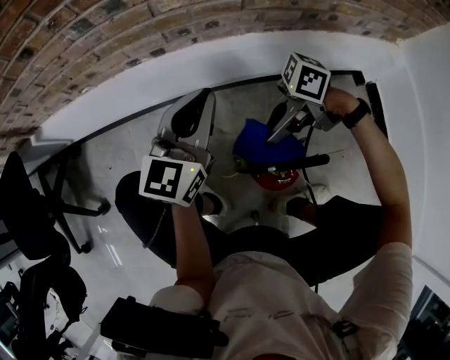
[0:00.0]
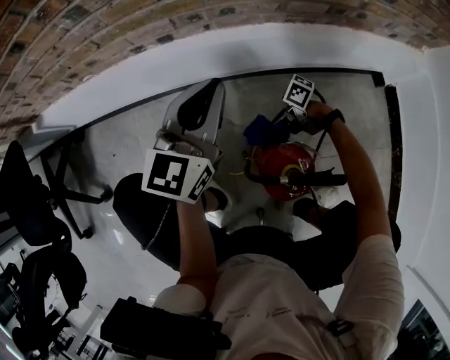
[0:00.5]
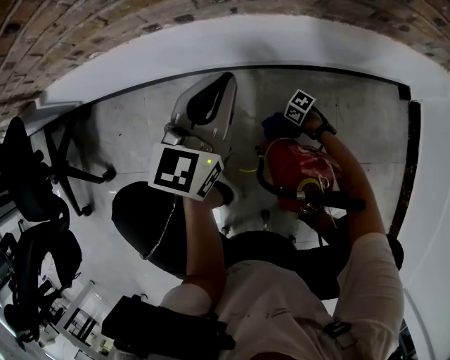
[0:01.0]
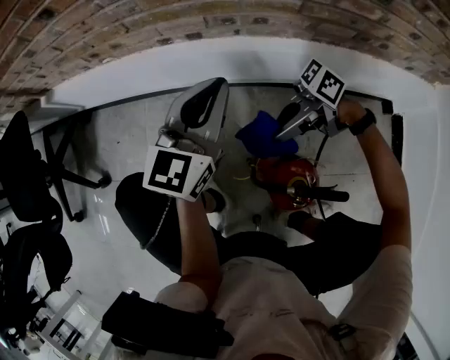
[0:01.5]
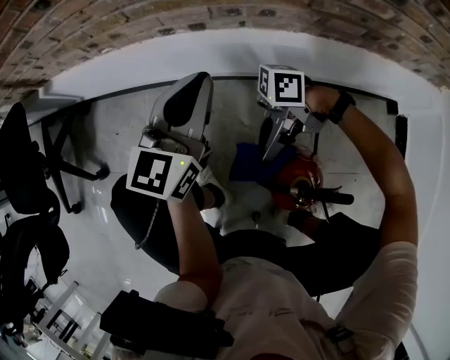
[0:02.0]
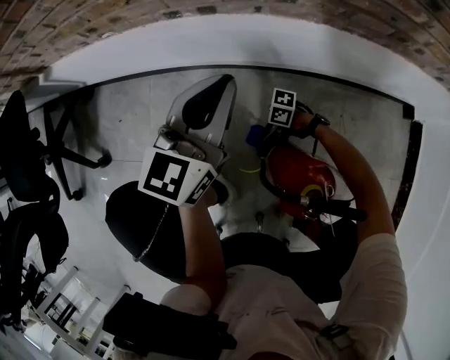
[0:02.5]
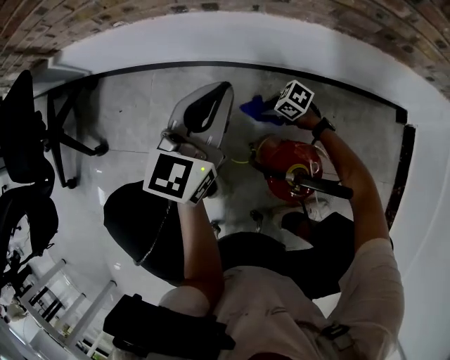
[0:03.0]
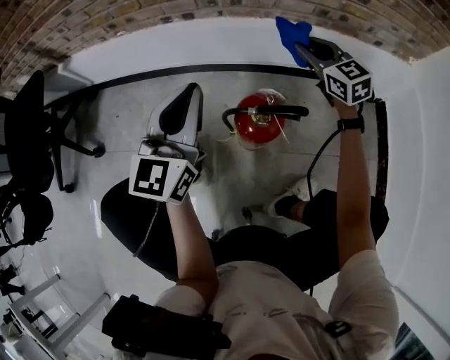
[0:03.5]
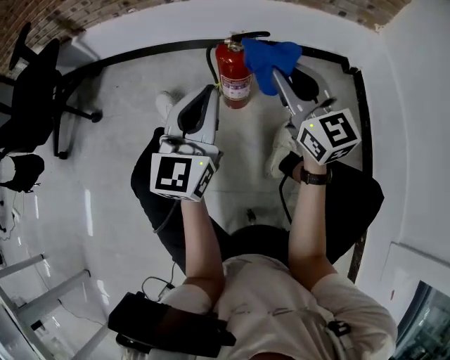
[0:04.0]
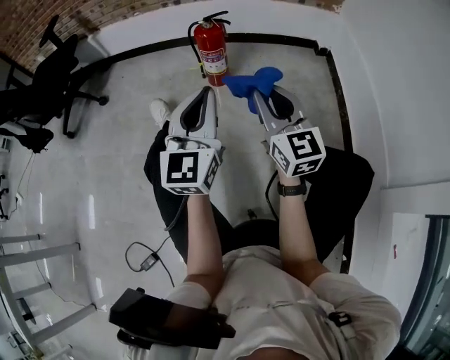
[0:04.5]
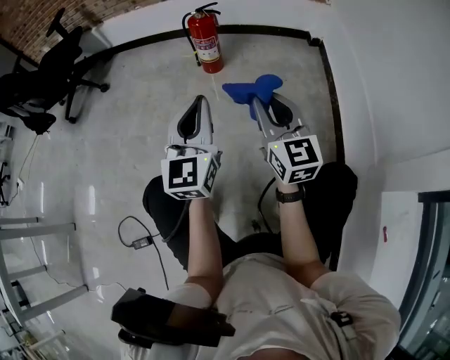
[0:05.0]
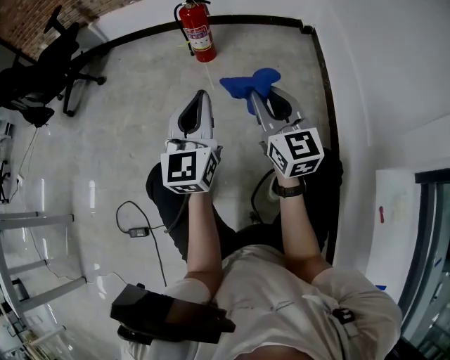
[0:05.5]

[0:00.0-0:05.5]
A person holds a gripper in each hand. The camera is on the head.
0:00.0 to 0:02.0: The left gripper moves some 10 cm, while the right gripper travels downward and back again, some 40 cm each way, and changes its angle by some 30 degrees.
0:02.0 to 0:03.5: The right gripper goes downward and returns, about 30 cm each way, and turns by some 120 degrees, while the left gripper moves roughly 20 cm.
0:03.5 to 0:05.5: The pair of grippers is taken backward, roughly 70 cm. The right gripper turns by about 20 degrees.

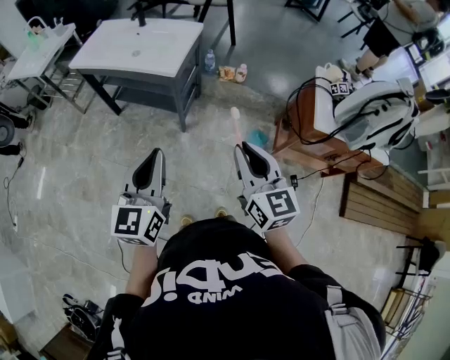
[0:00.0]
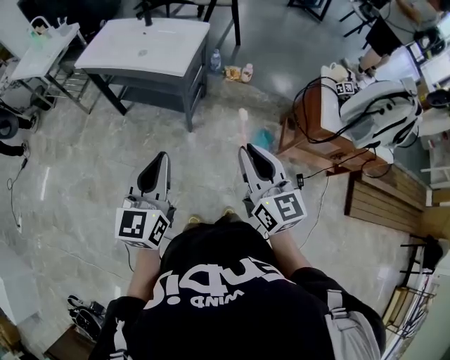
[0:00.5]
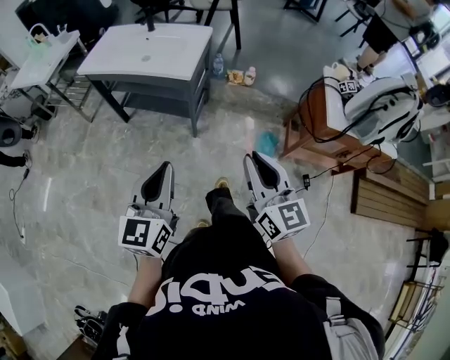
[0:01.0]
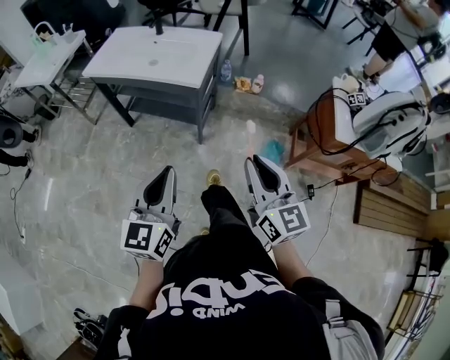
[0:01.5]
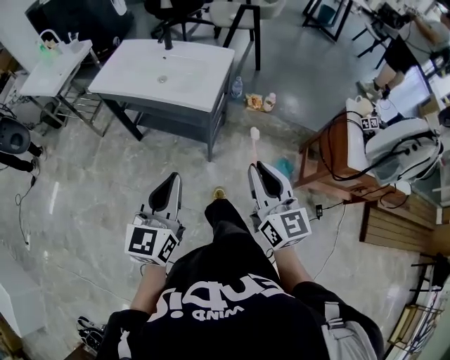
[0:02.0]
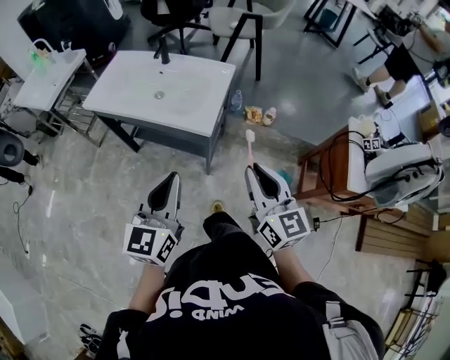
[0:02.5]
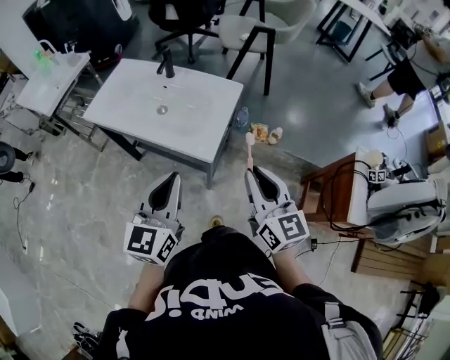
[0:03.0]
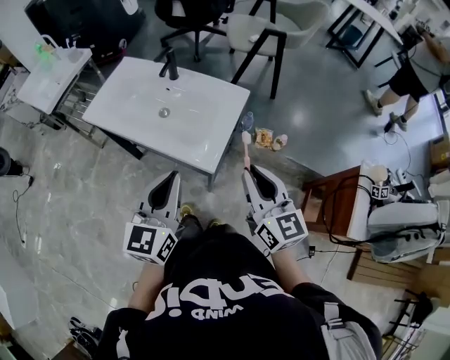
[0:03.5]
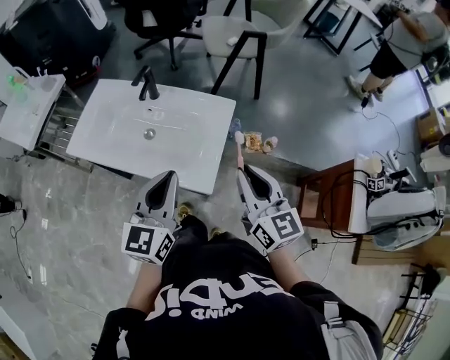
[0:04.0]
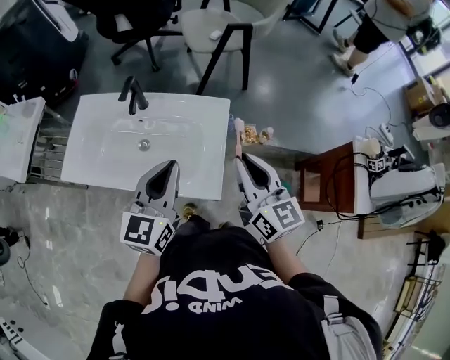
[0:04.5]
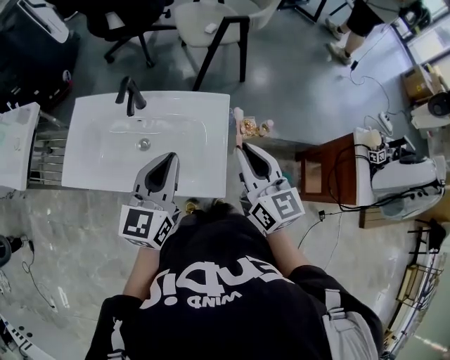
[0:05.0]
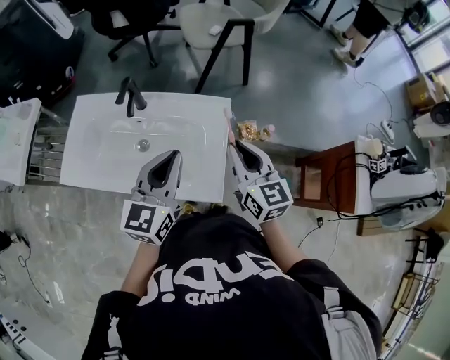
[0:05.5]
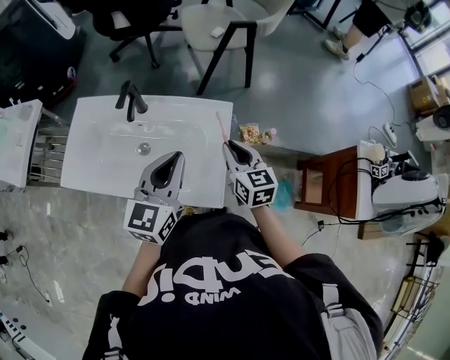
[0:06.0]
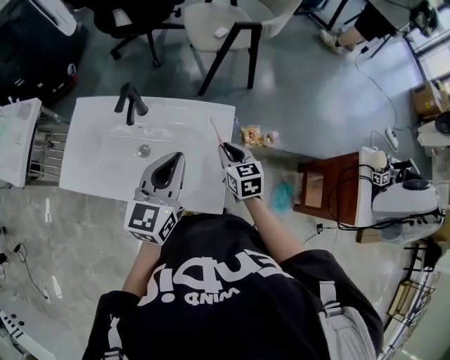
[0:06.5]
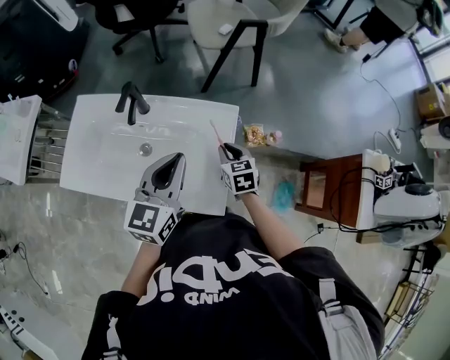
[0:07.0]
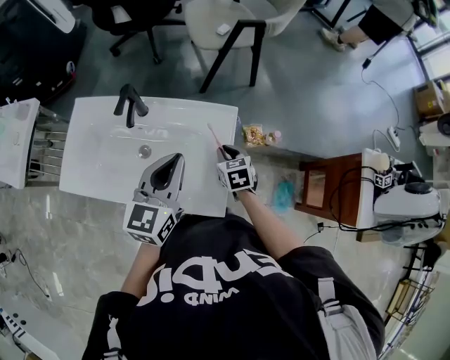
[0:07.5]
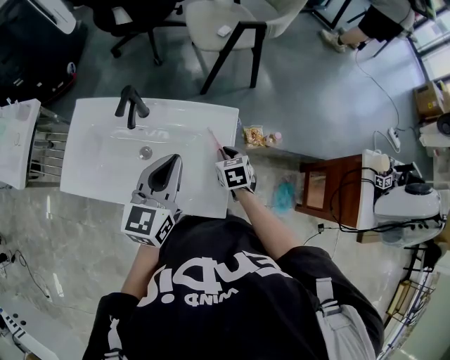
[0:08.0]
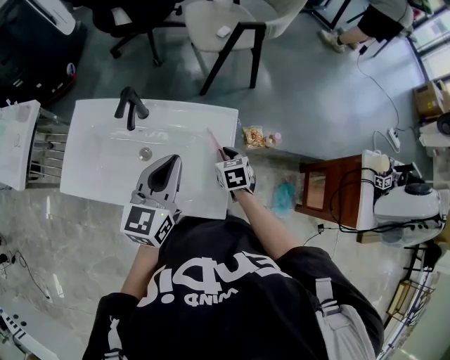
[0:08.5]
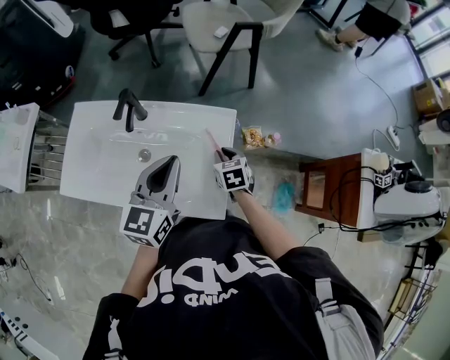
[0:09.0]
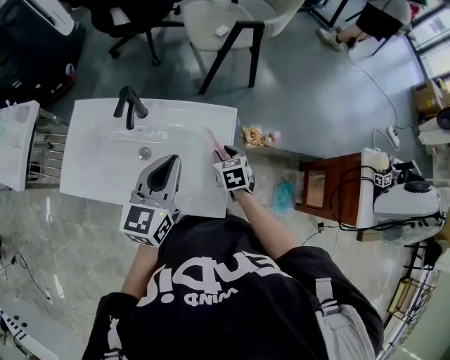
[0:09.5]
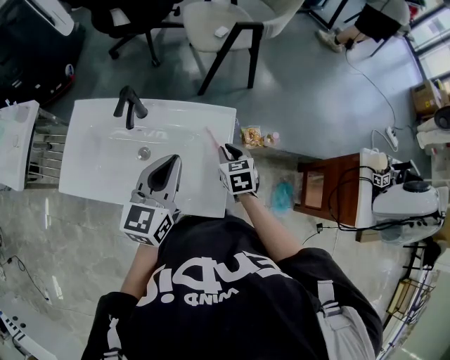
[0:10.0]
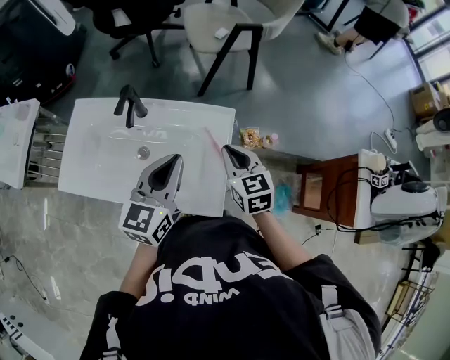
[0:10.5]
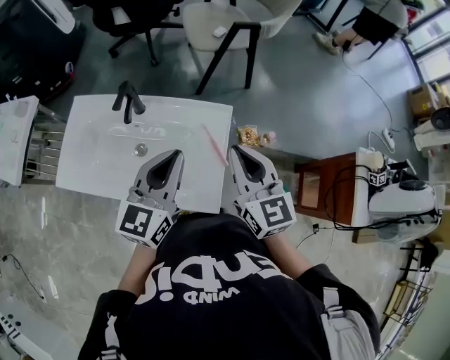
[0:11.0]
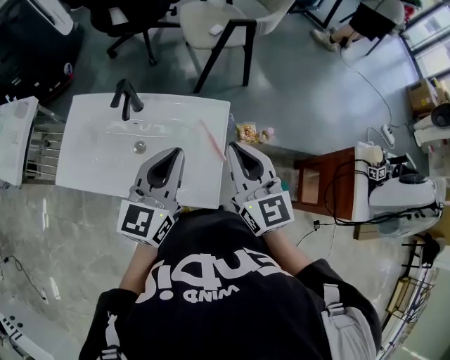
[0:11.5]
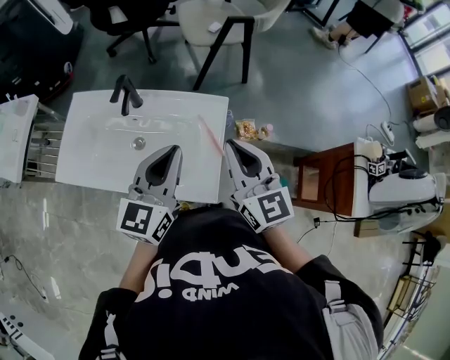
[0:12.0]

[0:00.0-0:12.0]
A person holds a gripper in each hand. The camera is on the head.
0:00.0 to 0:02.0: Both grippers move forward and to the left, about 15 cm.
0:02.0 to 0:04.0: The two grippers go about 35 cm forward.
0:04.0 to 0:06.0: The left gripper moves forward, approximately 15 cm. The right gripper goes roughly 20 cm forward and downward.
0:06.0 to 0:08.0: The right gripper goes approximately 15 cm downward, and swivels about 30 degrees.
0:08.0 to 0:10.0: The grippers move only a little.
0:10.0 to 0:12.0: The left gripper ends up about 5 cm from where it was; the right gripper travels upward and backward by some 25 cm, and points its fingers approximately 40 degrees further upward.

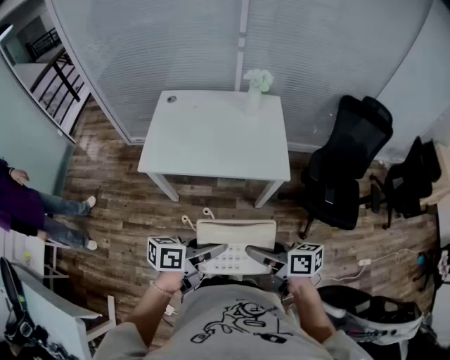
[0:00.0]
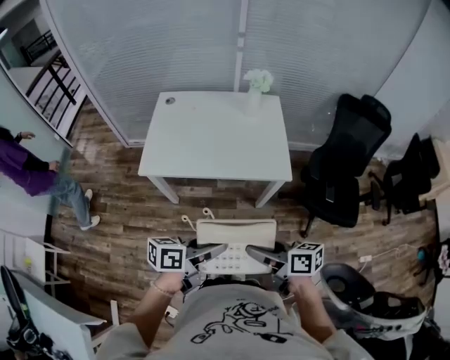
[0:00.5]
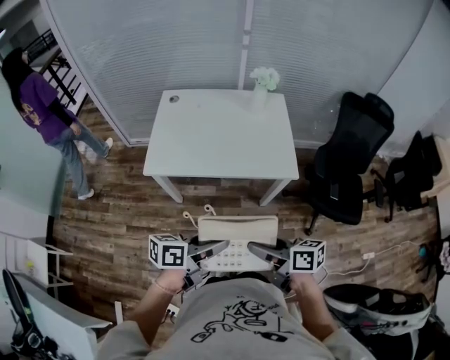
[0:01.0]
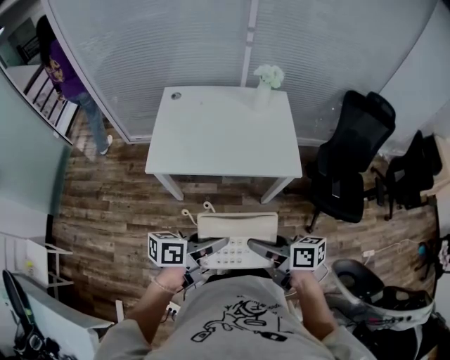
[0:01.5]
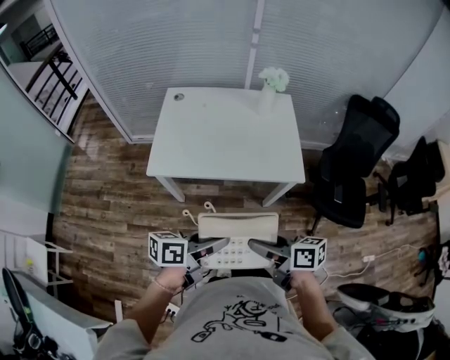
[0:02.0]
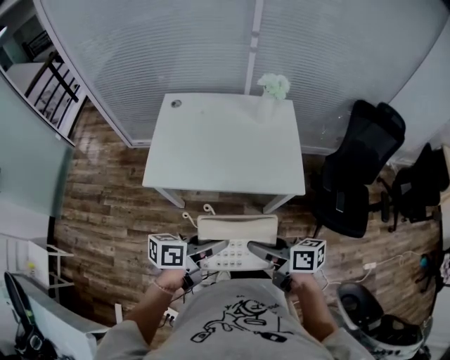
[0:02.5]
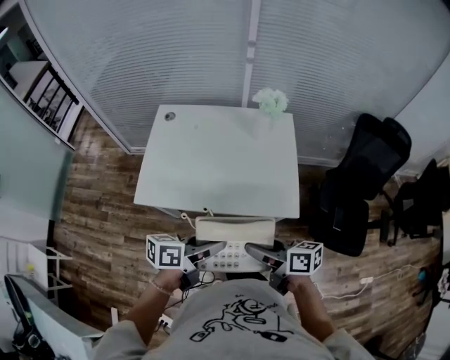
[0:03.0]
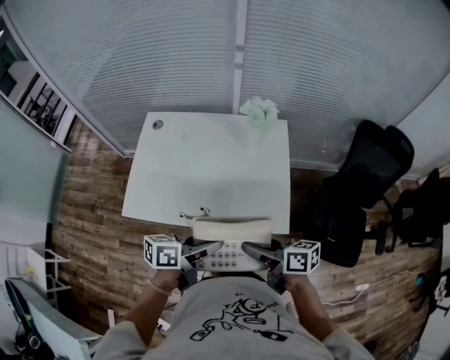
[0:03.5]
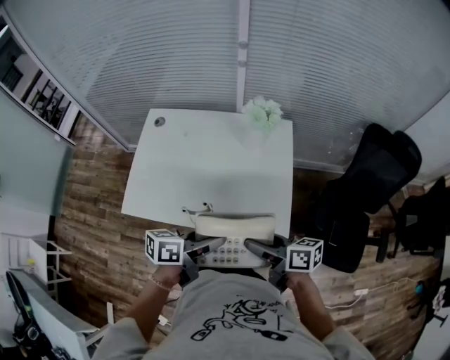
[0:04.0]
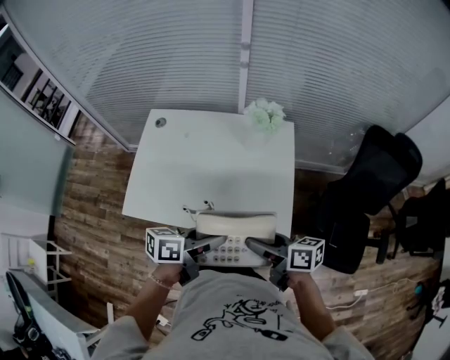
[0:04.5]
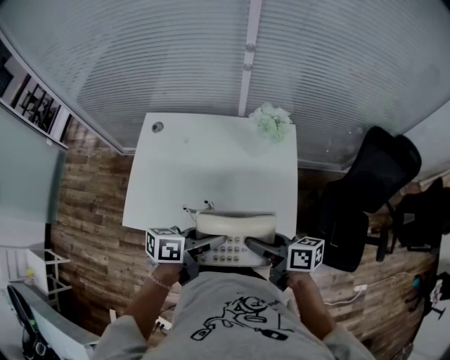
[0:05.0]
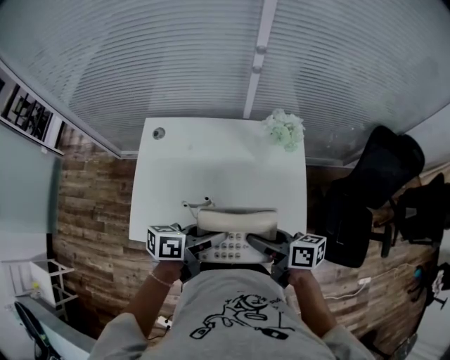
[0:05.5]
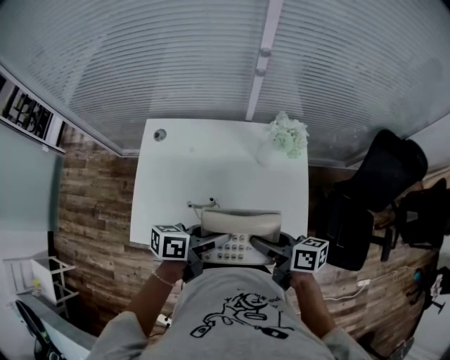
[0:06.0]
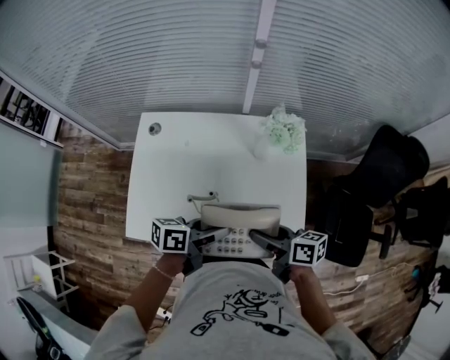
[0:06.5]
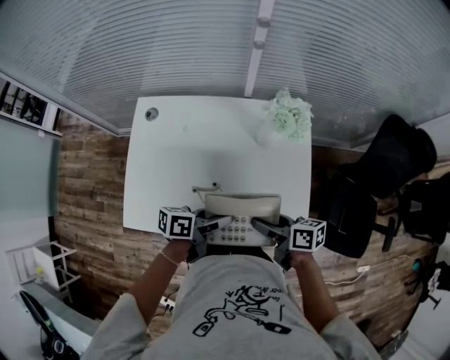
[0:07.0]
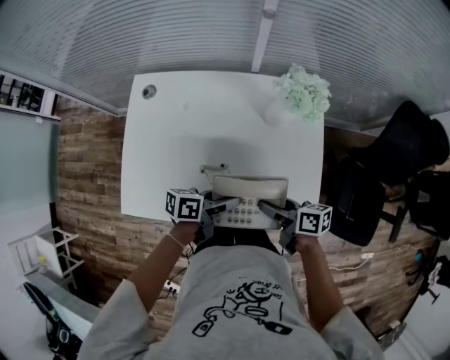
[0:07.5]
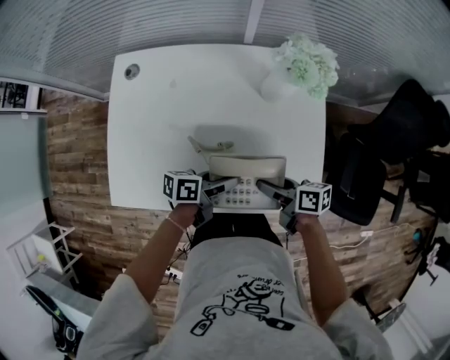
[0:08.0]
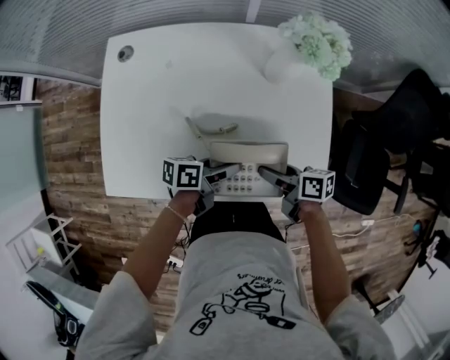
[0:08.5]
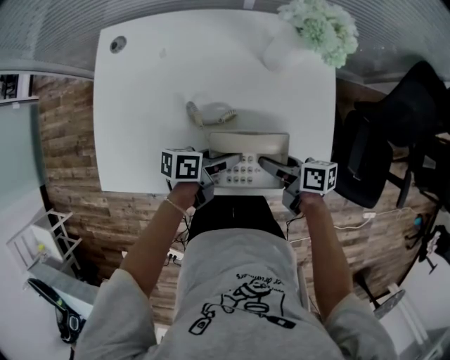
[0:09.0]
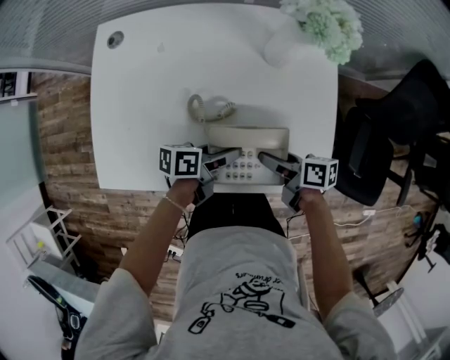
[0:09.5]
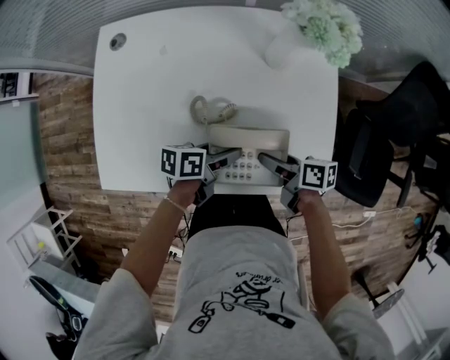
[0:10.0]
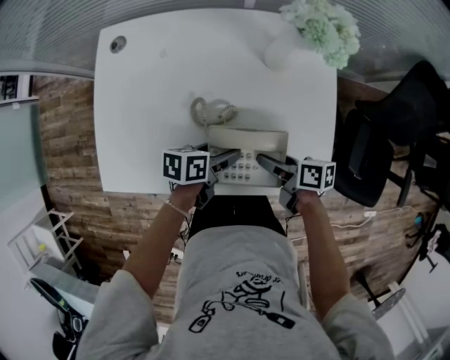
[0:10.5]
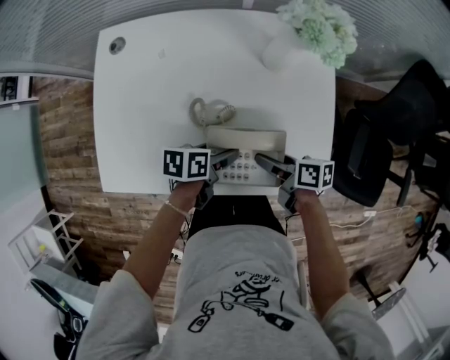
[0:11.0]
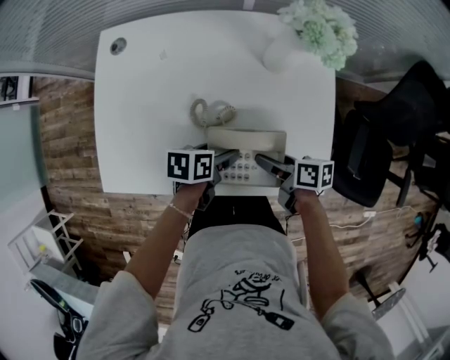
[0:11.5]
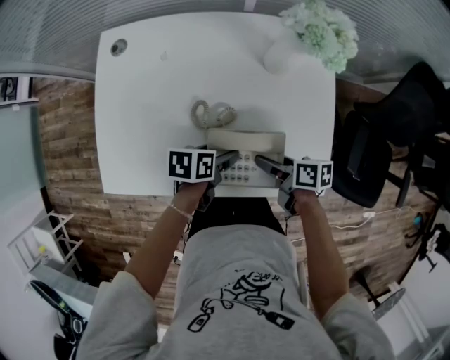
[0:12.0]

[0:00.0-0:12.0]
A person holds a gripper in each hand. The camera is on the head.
0:00.0 to 0:02.0: The grippers both shift to the left by roughly 10 cm.
0:02.0 to 0:04.0: The grippers both shift forward and to the right by roughly 30 cm.
0:04.0 to 0:06.0: The grippers both shift forward and to the left by about 15 cm.
0:06.0 to 0:08.0: The grippers both shift downward by roughly 20 cm.
0:08.0 to 0:10.0: The grippers stay close to where they were, moving slightly.
0:10.0 to 0:12.0: The left gripper changes its angle by about 20 degrees.
